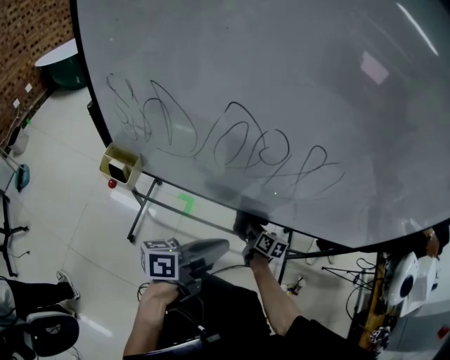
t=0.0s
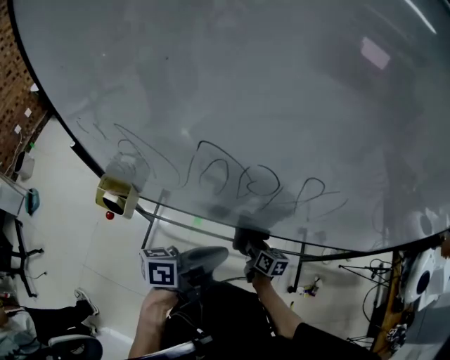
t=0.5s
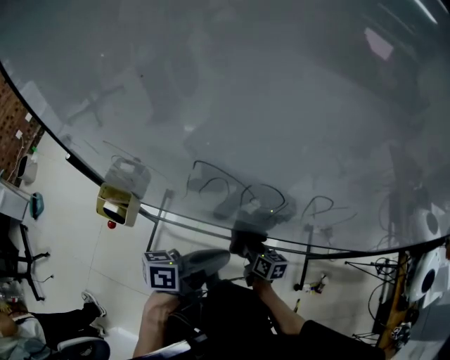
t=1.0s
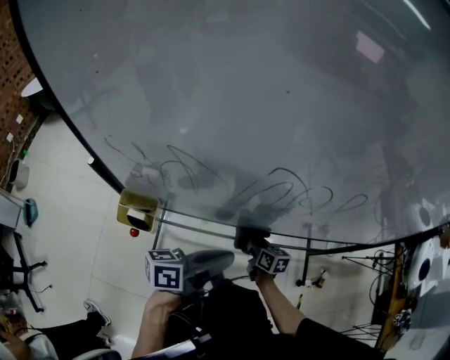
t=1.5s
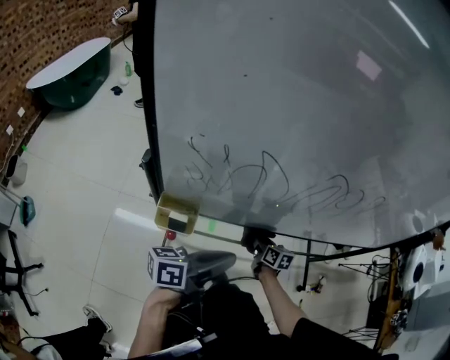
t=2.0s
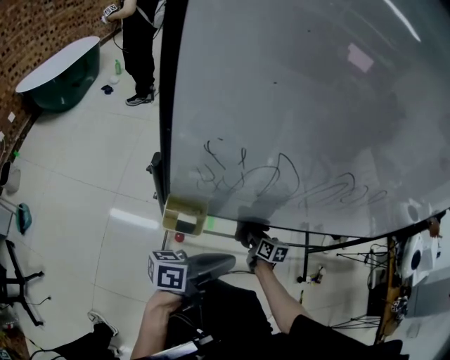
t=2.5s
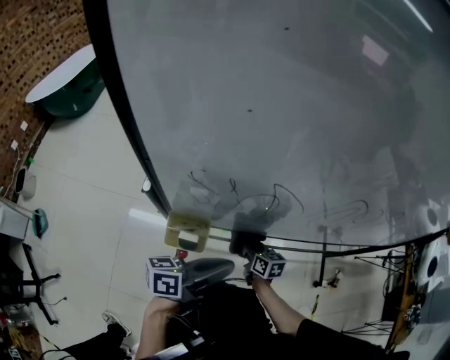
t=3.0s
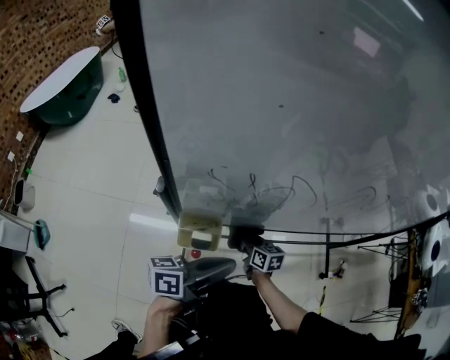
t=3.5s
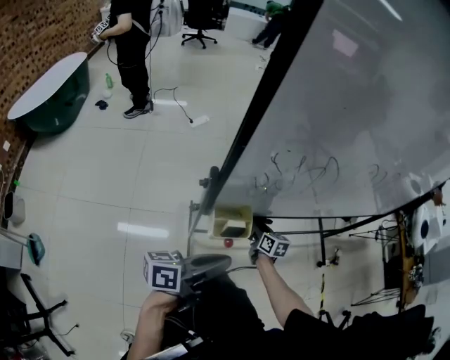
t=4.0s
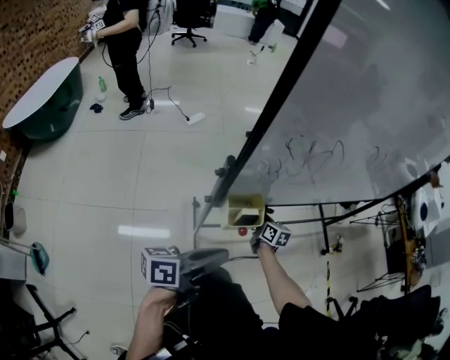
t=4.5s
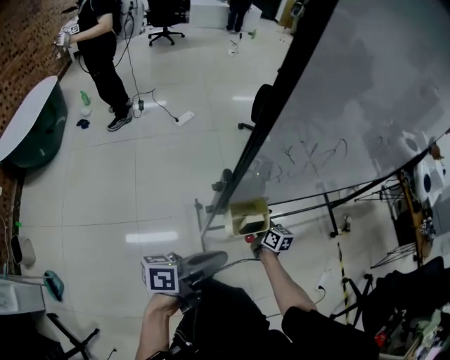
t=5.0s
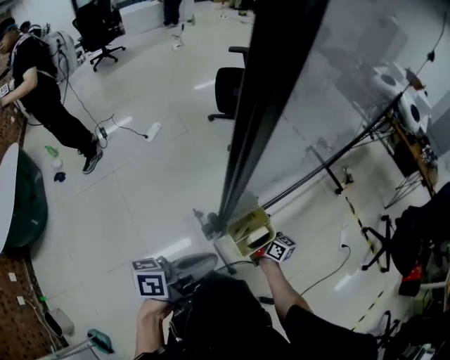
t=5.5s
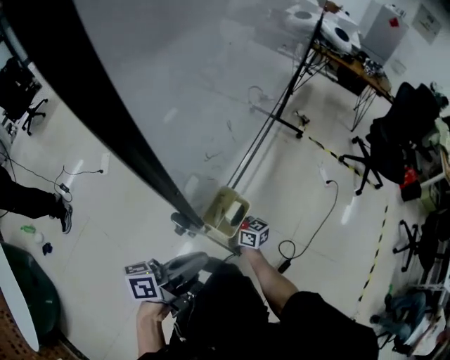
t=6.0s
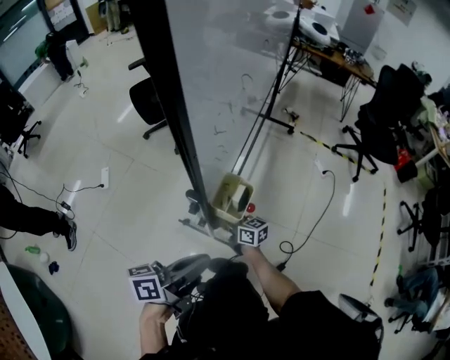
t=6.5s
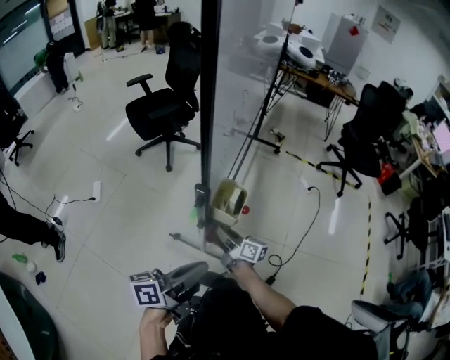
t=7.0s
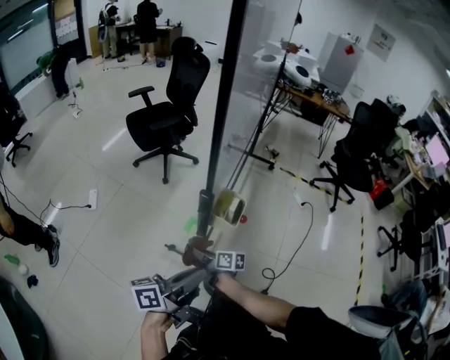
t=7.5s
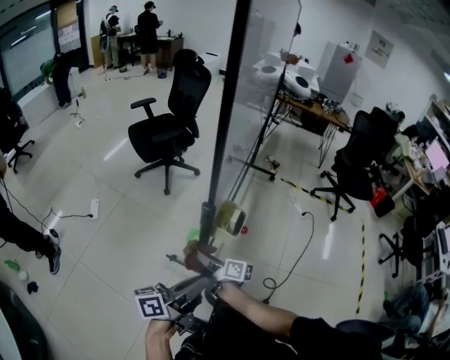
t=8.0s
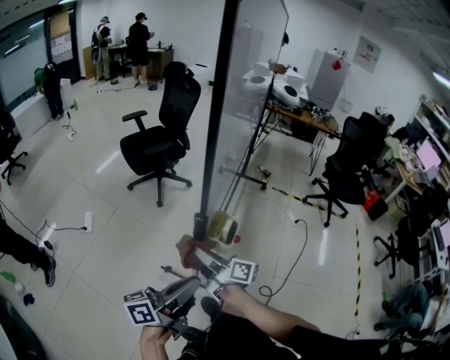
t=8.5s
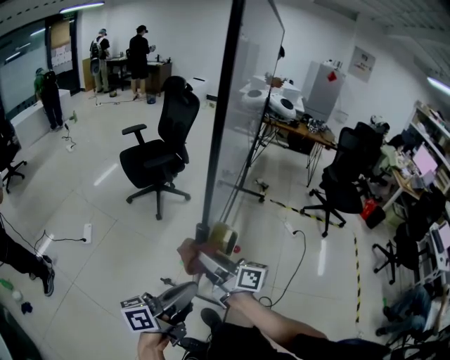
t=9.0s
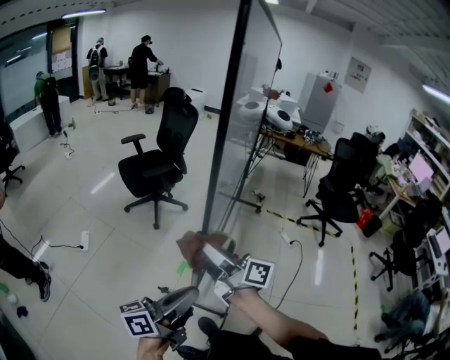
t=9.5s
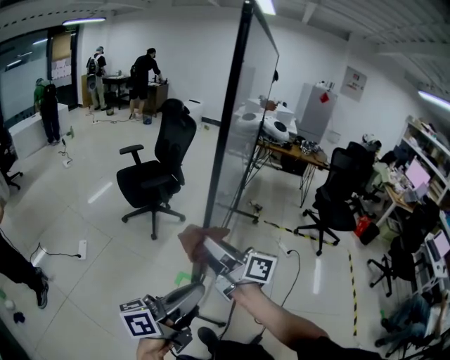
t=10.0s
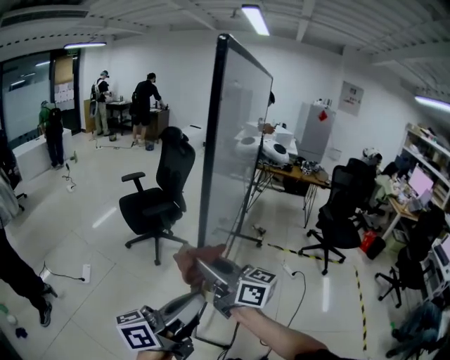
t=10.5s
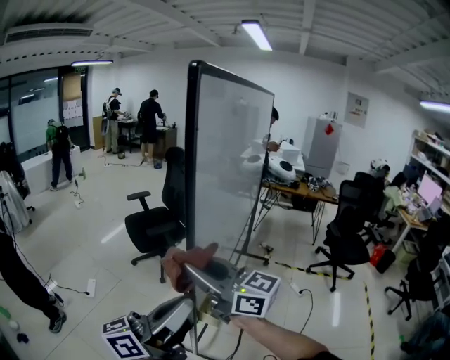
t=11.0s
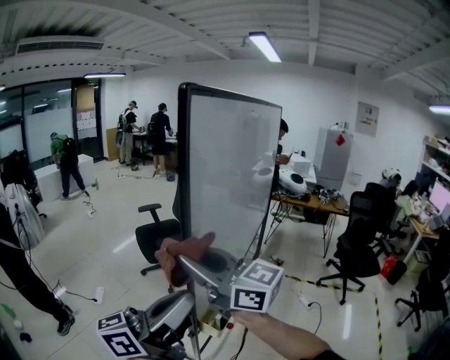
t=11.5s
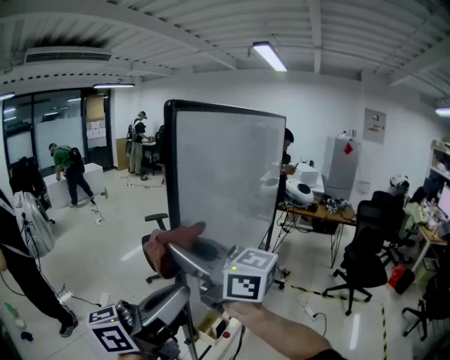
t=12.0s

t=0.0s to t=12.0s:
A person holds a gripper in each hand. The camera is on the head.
t=0.0s to t=2.0s: Both grippers travel together to the left, approximately 20 cm.
t=2.0s to t=4.0s: The right gripper heads to the left, covering roughly 15 cm; the left gripper goes approximately 20 cm to the left and backward.
t=4.0s to t=6.0s: The right gripper shifts by approximately 10 cm, and swivels about 30 degrees, while the left gripper shifts by roughly 15 cm, and swivels approximately 40 degrees.
t=6.0s to t=8.0s: The left gripper moves backward, about 10 cm, while the right gripper goes approximately 15 cm backward, upward and to the left, and turns by roughly 30 degrees.
t=8.0s to t=10.0s: The right gripper moves upward, approximately 30 cm, and rotates some 30 degrees. The left gripper moves upward, about 15 cm.
t=10.0s to t=12.0s: Both grippers travel together upward, approximately 25 cm. The right gripper turns by roughly 40 degrees. The left gripper turns by some 30 degrees.

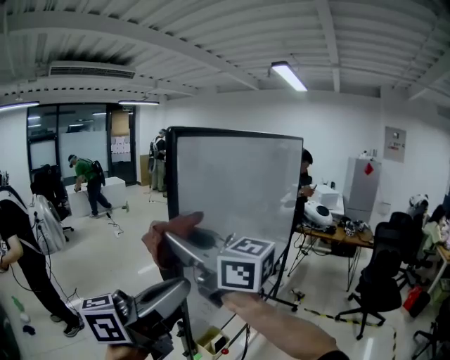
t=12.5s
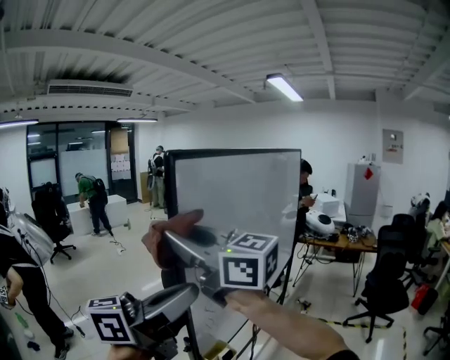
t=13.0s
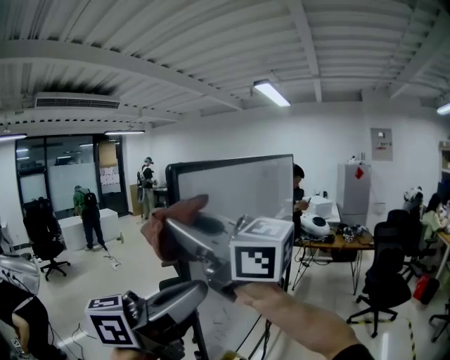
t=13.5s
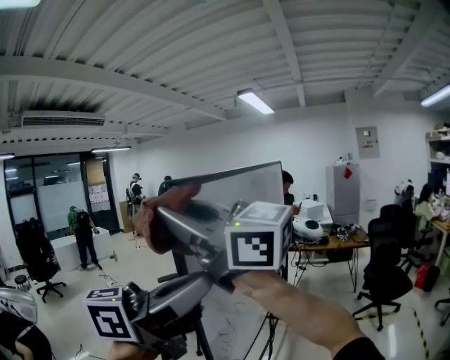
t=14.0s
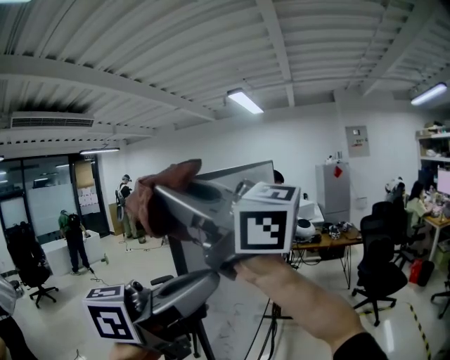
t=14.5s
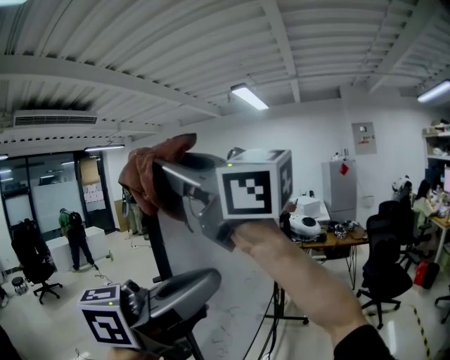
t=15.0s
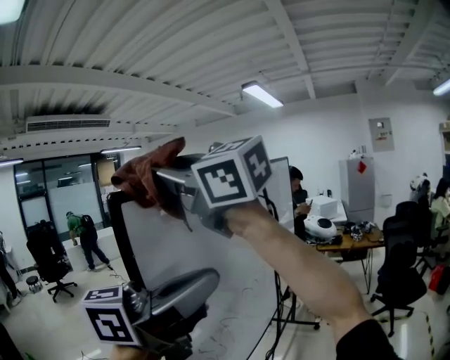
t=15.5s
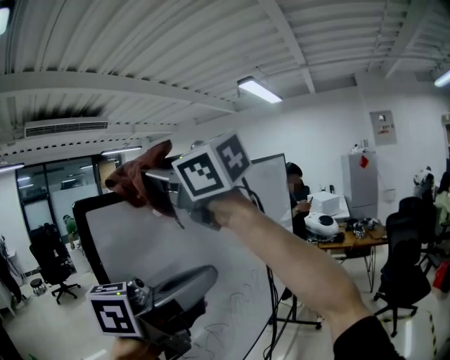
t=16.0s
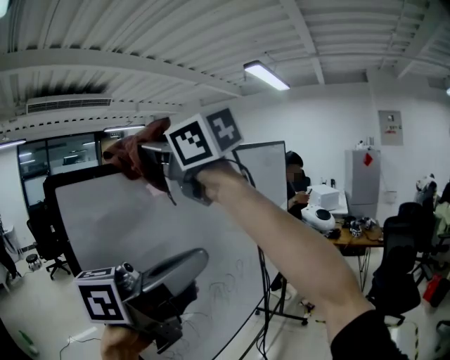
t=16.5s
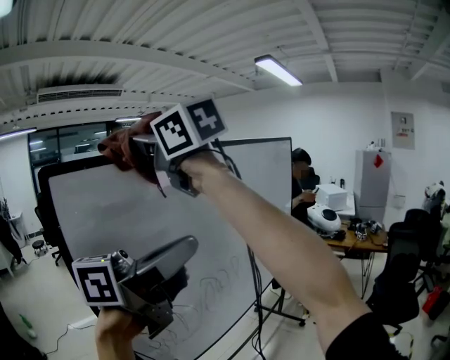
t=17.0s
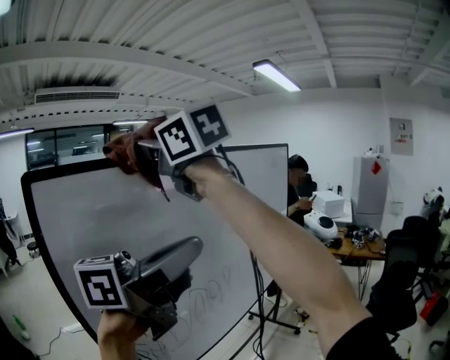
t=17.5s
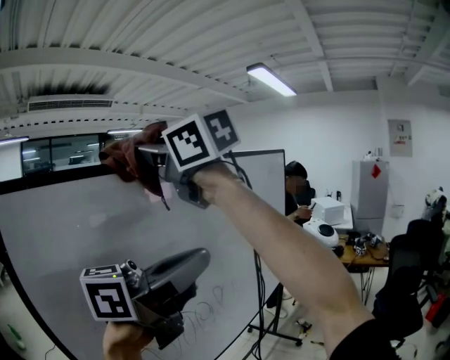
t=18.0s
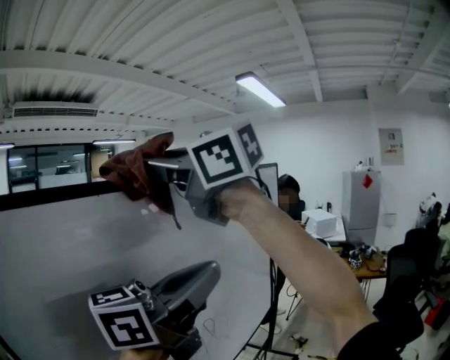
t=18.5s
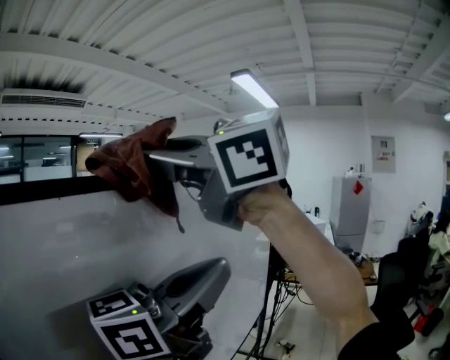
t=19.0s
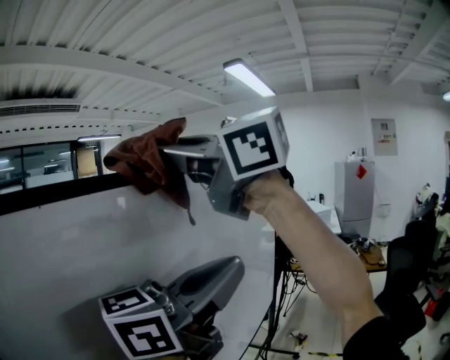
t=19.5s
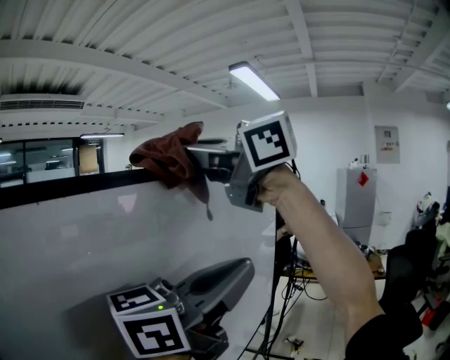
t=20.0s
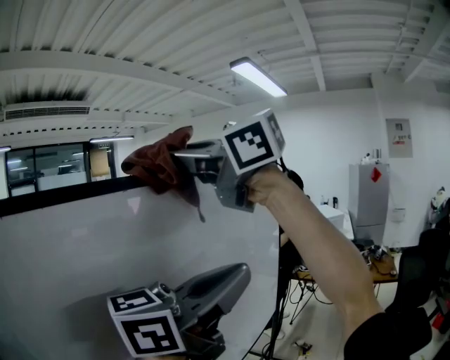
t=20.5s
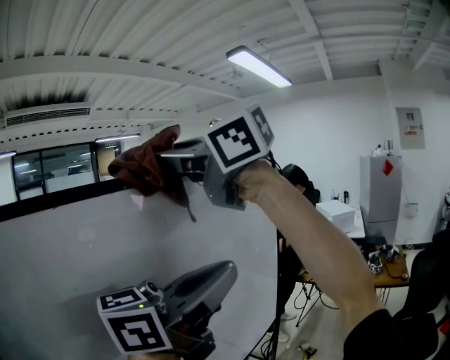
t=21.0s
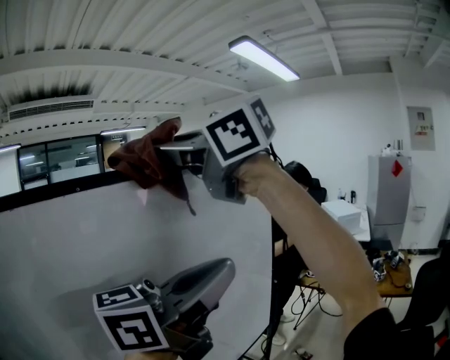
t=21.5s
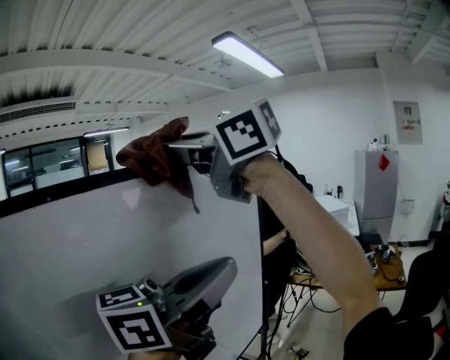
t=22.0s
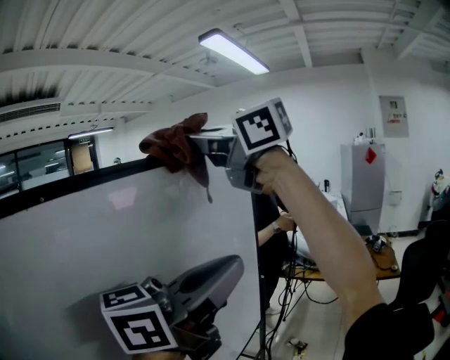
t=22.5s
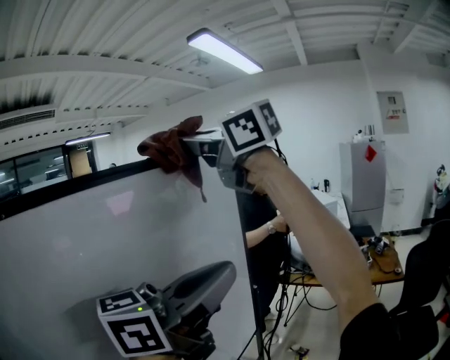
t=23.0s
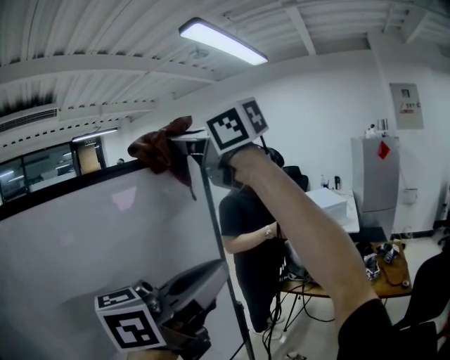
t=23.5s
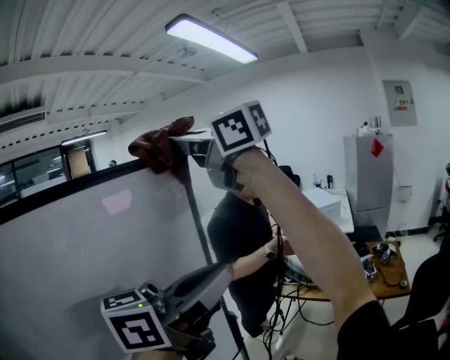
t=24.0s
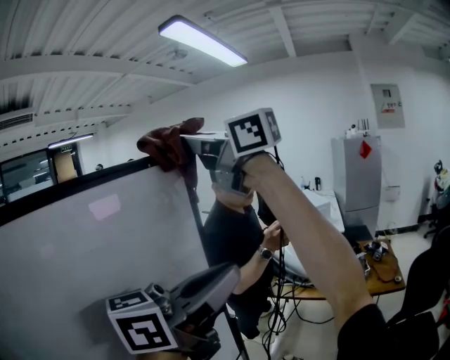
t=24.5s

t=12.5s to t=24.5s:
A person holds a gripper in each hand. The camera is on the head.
t=12.5s to t=14.5s: The left gripper shifts about 10 cm upward, and changes its angle by some 30 degrees, while the right gripper travels upward by roughly 20 cm, and turns by approximately 20 degrees.
t=14.5s to t=16.5s: The right gripper changes place by roughly 25 cm; the left gripper changes place by roughly 25 cm.
t=16.5s to t=18.5s: The right gripper ends up some 20 cm from where it was; the left gripper moves roughly 25 cm.
t=18.5s to t=20.5s: The left gripper shifts by approximately 15 cm; the right gripper moves about 20 cm.
t=20.5s to t=22.5s: The left gripper moves approximately 20 cm. Meanwhile the right gripper changes place by roughly 30 cm.
t=22.5s to t=24.5s: The right gripper moves approximately 30 cm. The left gripper shifts by about 25 cm.

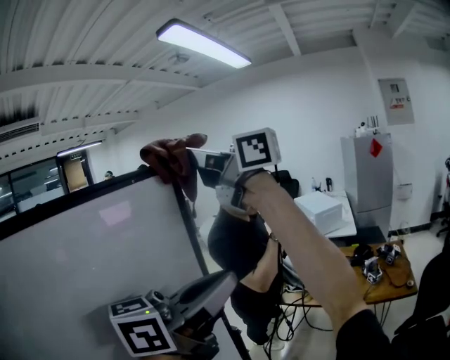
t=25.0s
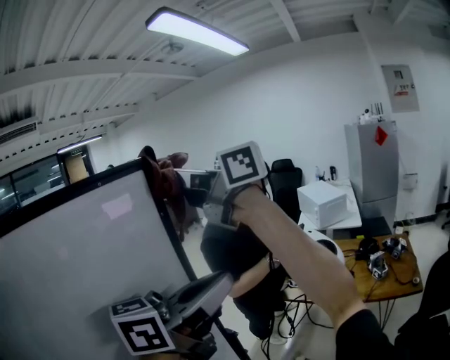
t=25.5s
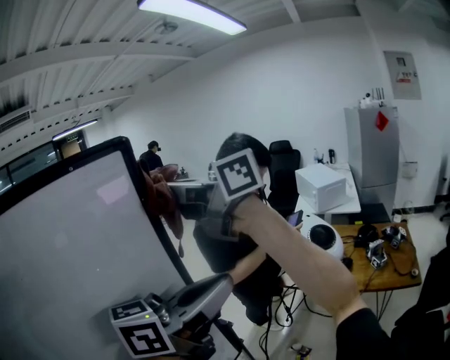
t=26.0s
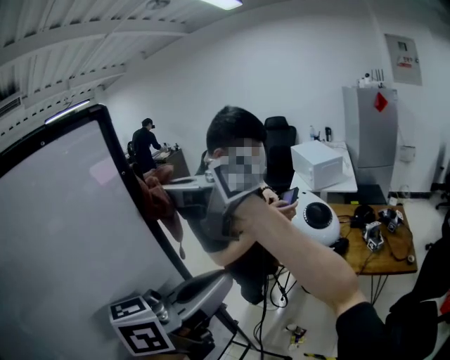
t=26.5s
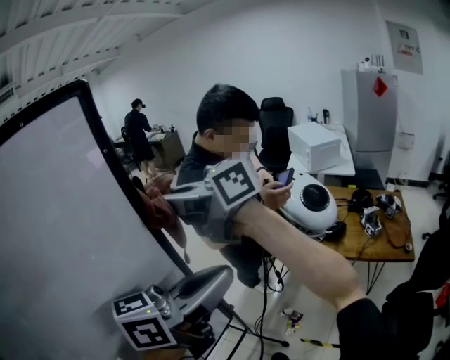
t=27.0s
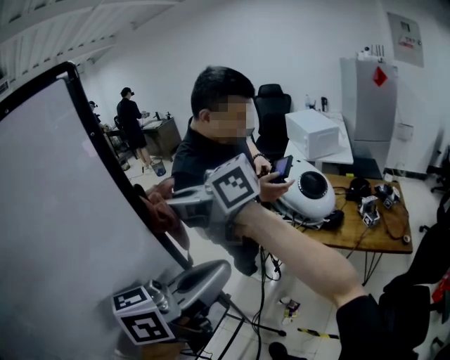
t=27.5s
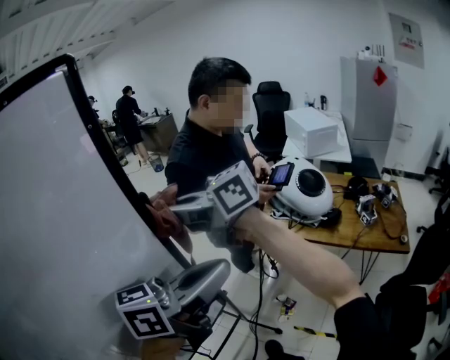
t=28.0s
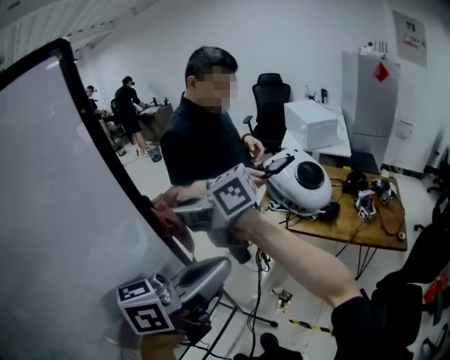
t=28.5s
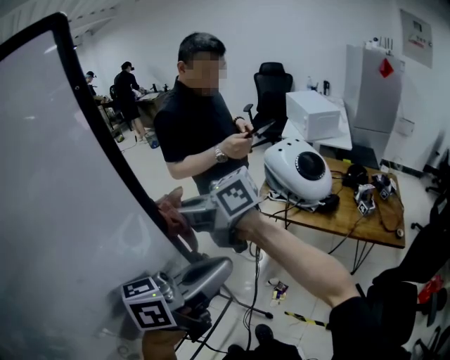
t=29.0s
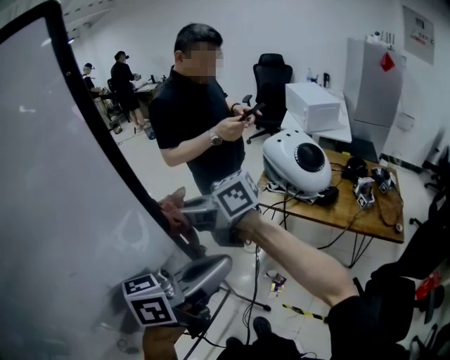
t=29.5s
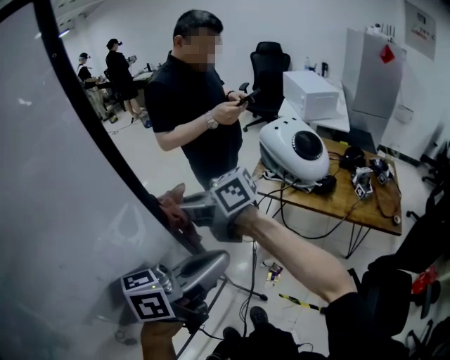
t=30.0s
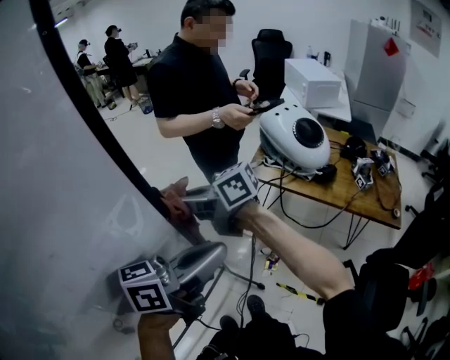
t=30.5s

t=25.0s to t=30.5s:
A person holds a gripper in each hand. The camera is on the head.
t=25.0s to t=27.0s: The right gripper moves downward, about 25 cm, and rotates about 30 degrees, while the left gripper is displaced downward by about 15 cm.
t=27.0s to t=28.5s: The right gripper moves downward, roughly 10 cm, while the left gripper travels downward by roughly 5 cm.
t=28.5s to t=30.5s: The left gripper moves downward, roughly 10 cm, while the right gripper heads downward, covering some 15 cm.
